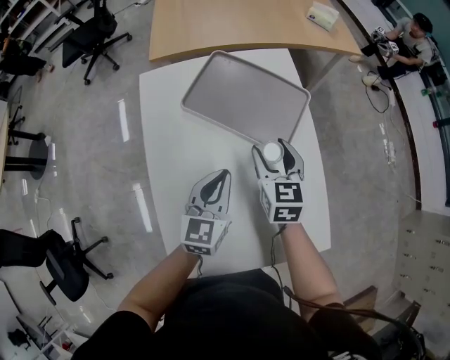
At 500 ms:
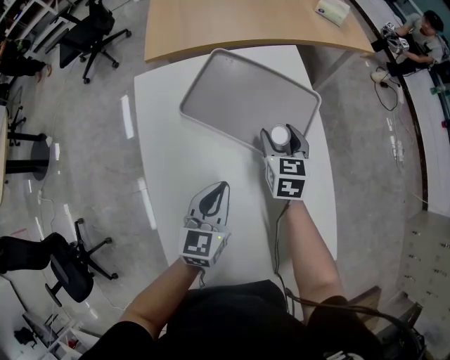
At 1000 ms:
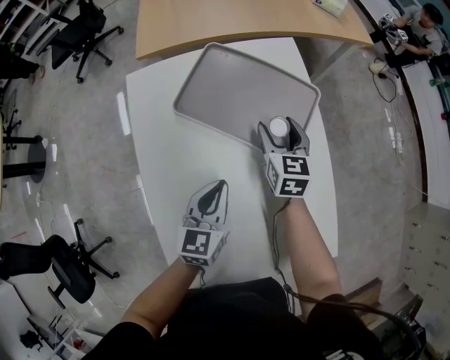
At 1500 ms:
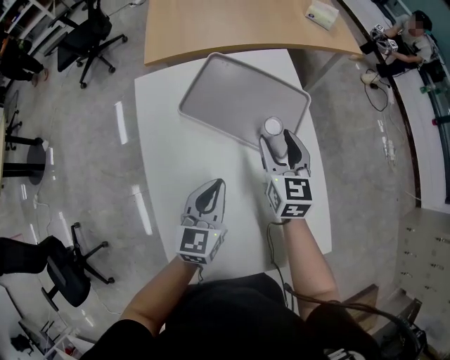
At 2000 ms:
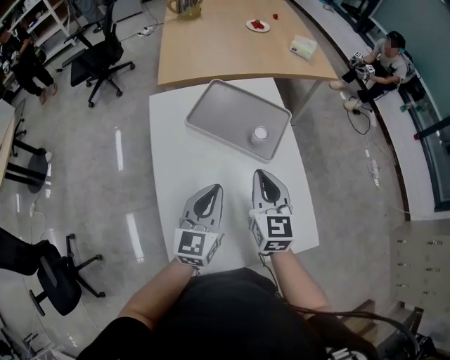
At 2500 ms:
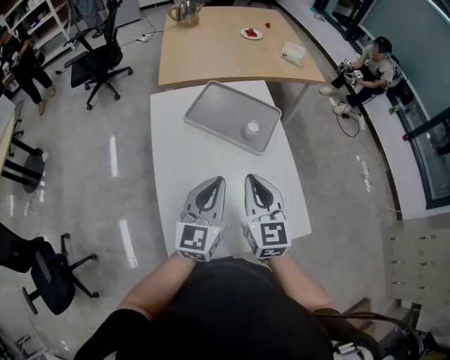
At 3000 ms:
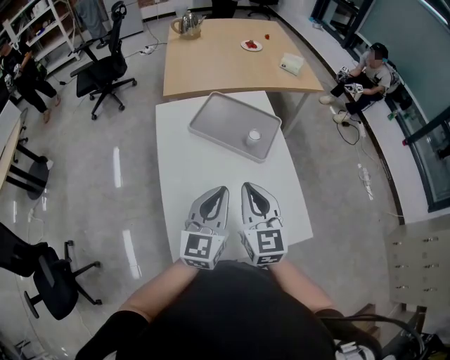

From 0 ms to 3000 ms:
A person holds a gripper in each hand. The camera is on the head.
From 1500 ms to 3000 ms: The left gripper shifts roughly 25 cm upward and backward. The right gripper shifts about 30 cm backward and upward, and closes its fingers.

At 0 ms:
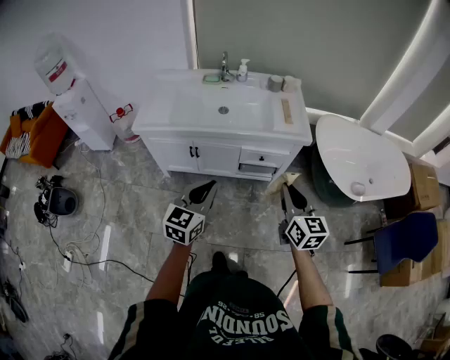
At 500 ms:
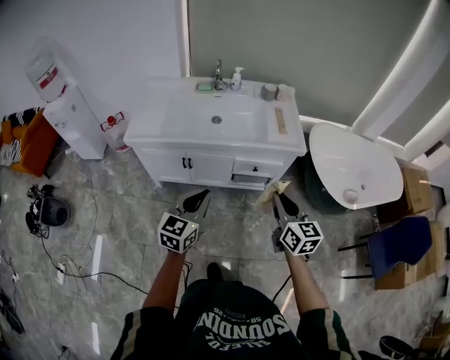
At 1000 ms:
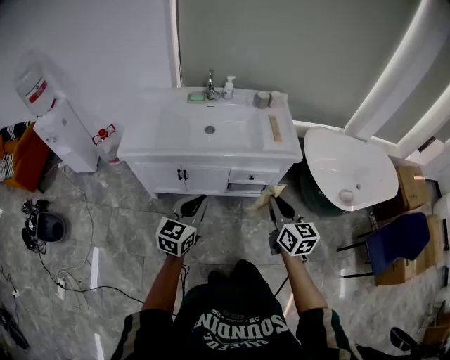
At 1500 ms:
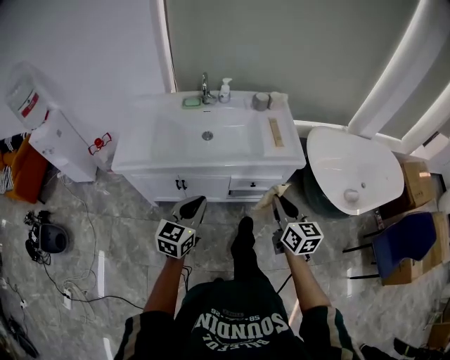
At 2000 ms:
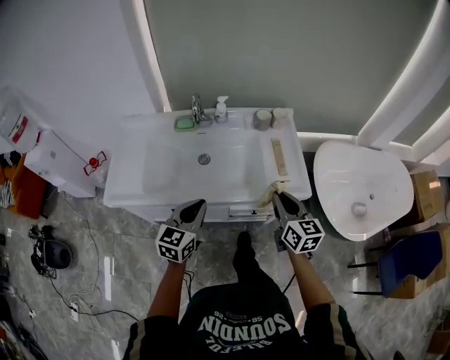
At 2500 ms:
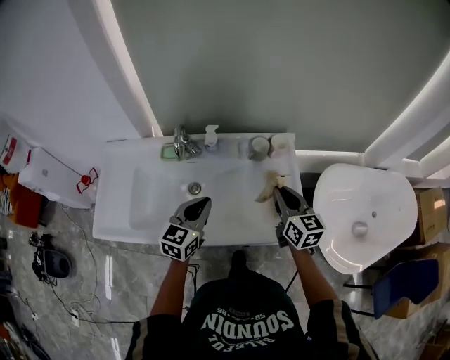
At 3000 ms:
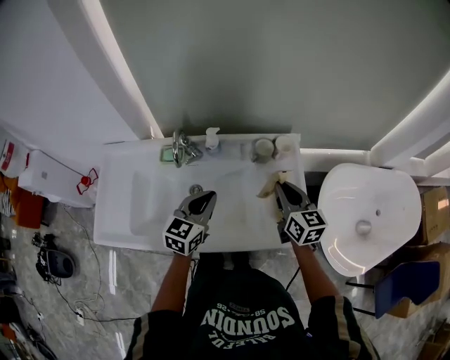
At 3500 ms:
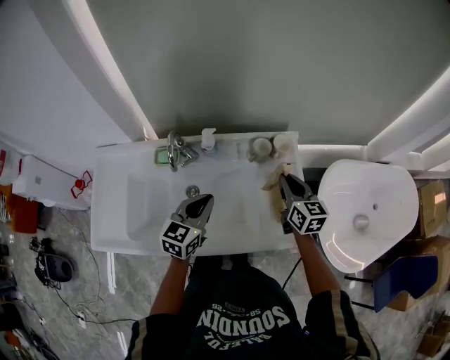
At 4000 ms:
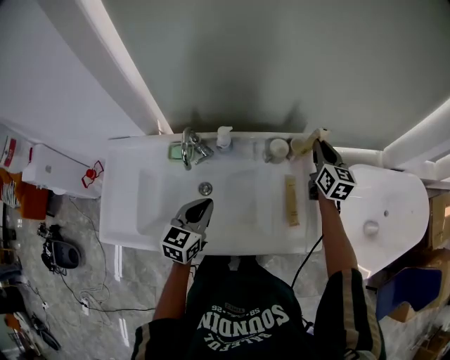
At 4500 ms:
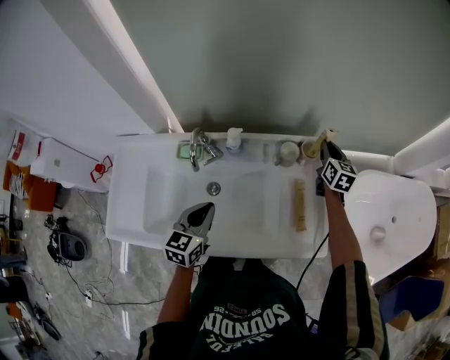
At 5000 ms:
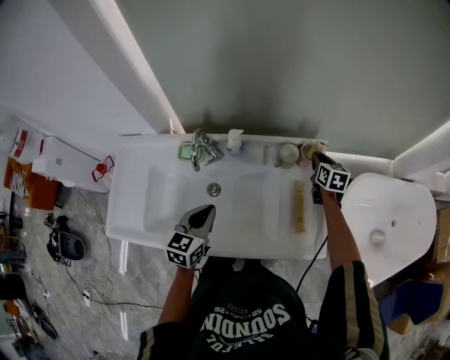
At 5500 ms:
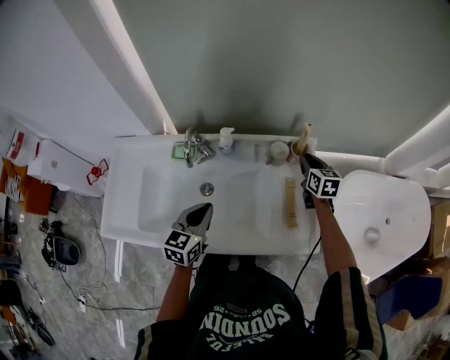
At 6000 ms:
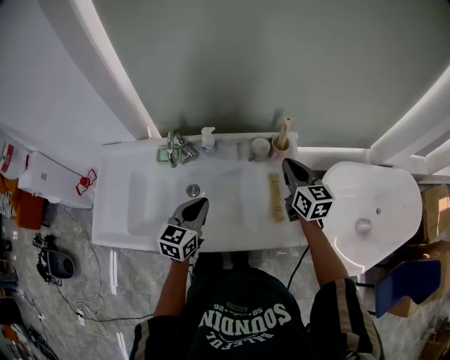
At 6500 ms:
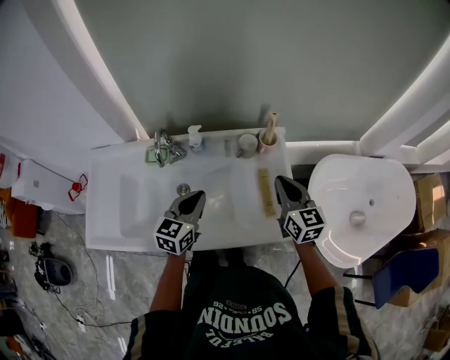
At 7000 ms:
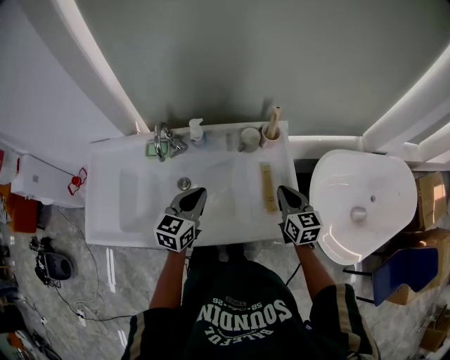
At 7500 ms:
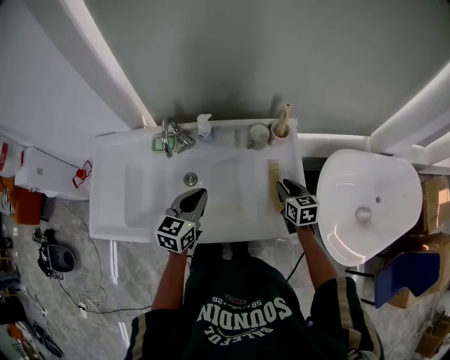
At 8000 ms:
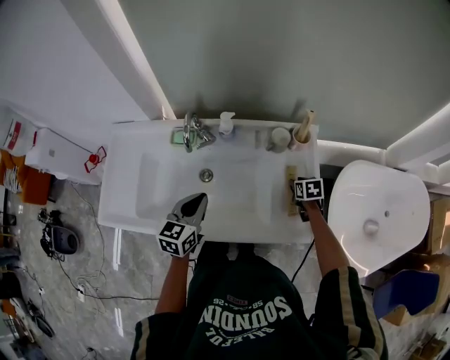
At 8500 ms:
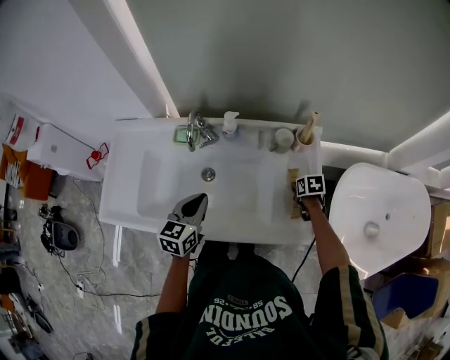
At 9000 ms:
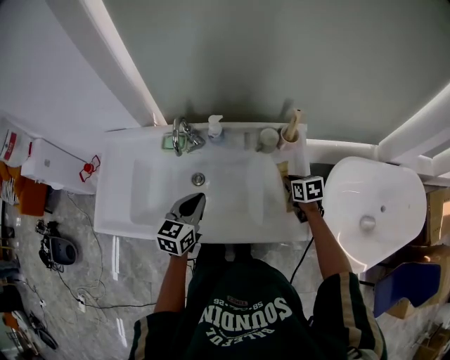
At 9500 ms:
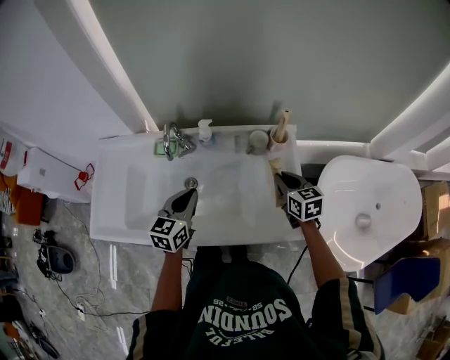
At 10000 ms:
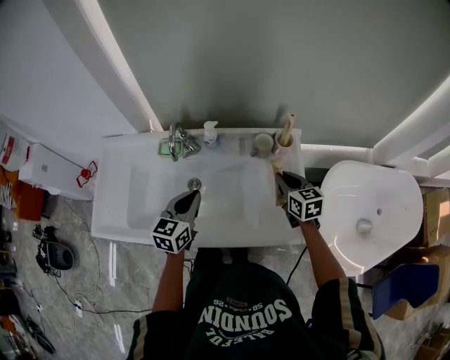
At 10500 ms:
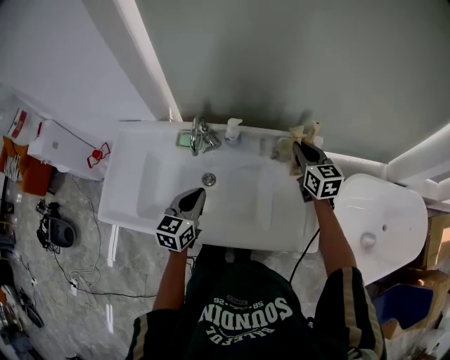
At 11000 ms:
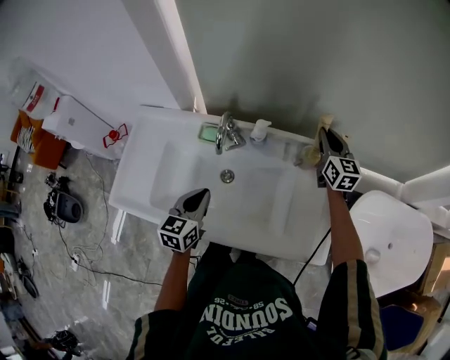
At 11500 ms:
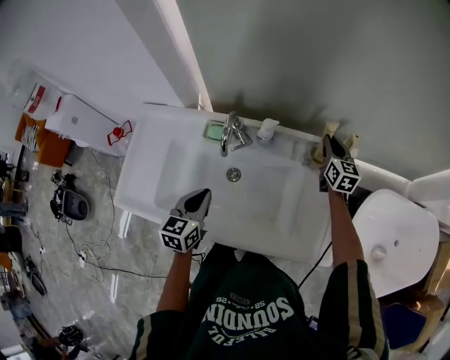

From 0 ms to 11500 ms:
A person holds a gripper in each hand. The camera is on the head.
From 0 ms to 2000 ms: The two grippers go roughly 30 cm forward.
From 2000 ms to 4000 ms: The left gripper is displaced forward by approximately 25 cm. Meanwhile the right gripper shifts about 40 cm forward.
From 4000 ms to 6000 ms: The right gripper goes some 10 cm backward.
From 6000 ms to 7500 ms: The right gripper travels downward by some 15 cm, and turns by about 20 degrees.
From 7500 ms to 9500 ms: The right gripper moves upward, roughly 5 cm.
From 9500 ms to 11500 ms: The left gripper is displaced to the left by about 10 cm. Meanwhile the right gripper travels forward by about 20 cm.

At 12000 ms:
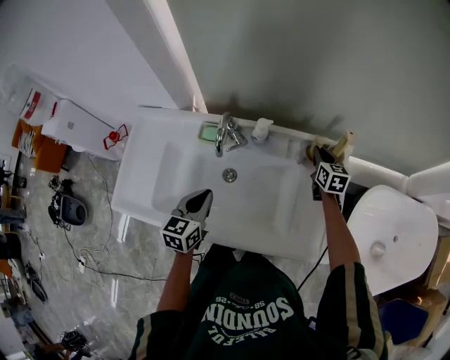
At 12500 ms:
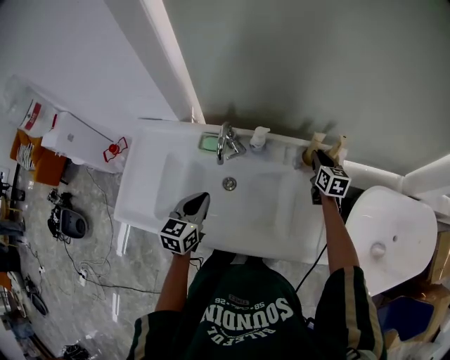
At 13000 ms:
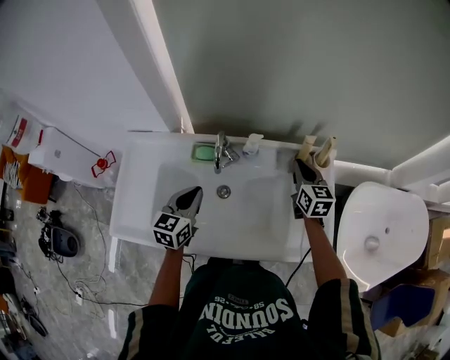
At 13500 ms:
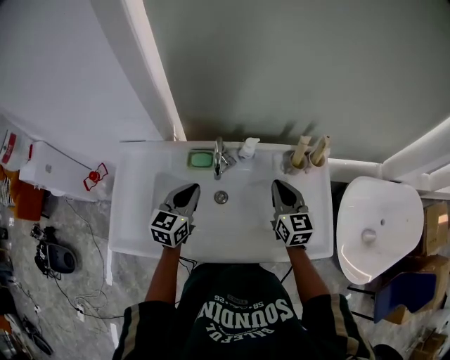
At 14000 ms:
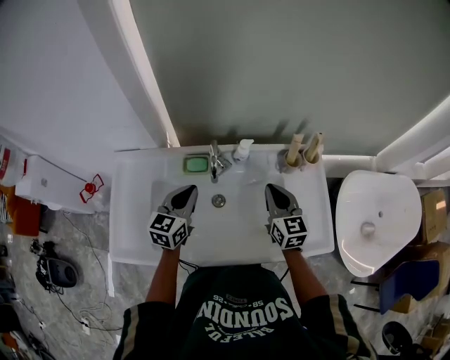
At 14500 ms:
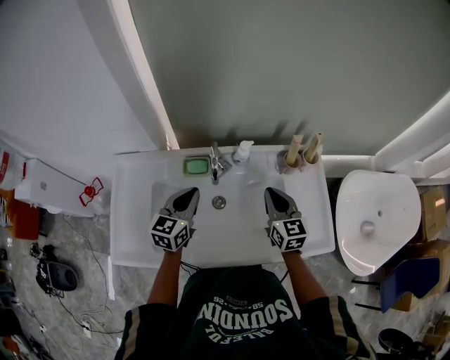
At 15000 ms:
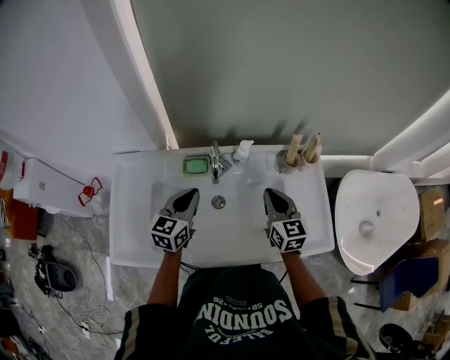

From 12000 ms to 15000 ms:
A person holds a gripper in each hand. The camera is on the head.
From 12000 ms to 13500 ms: The right gripper goes roughly 25 cm backward, to the left and upward, while the left gripper goes roughly 10 cm forward and to the left.
From 13500 ms to 15000 ms: The grippers move only a little.

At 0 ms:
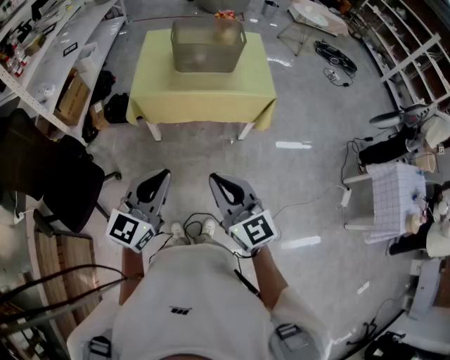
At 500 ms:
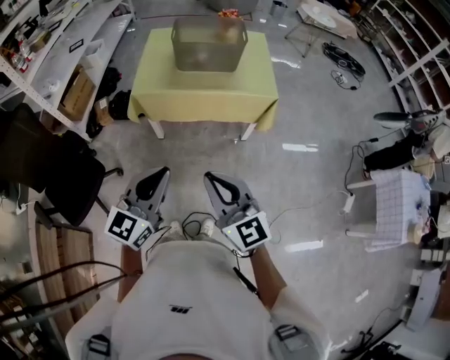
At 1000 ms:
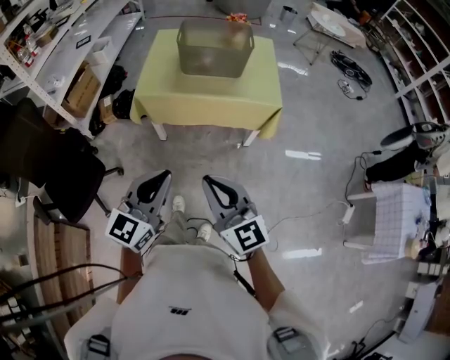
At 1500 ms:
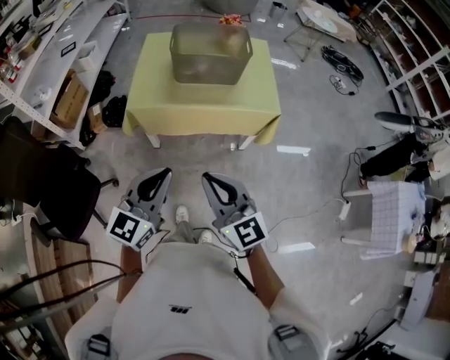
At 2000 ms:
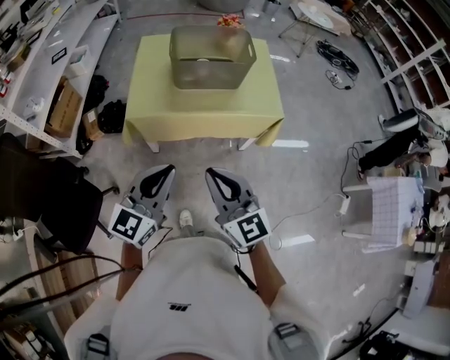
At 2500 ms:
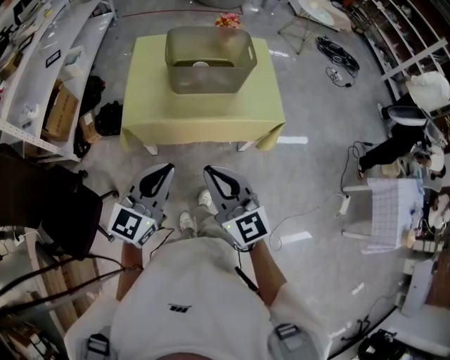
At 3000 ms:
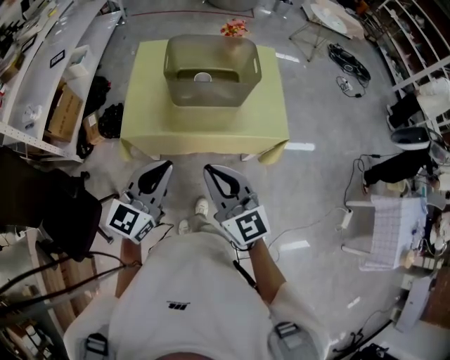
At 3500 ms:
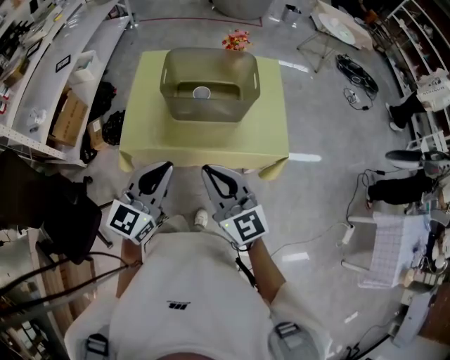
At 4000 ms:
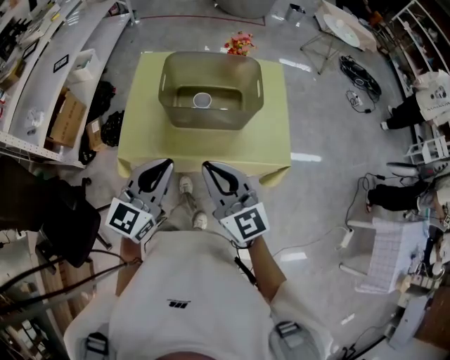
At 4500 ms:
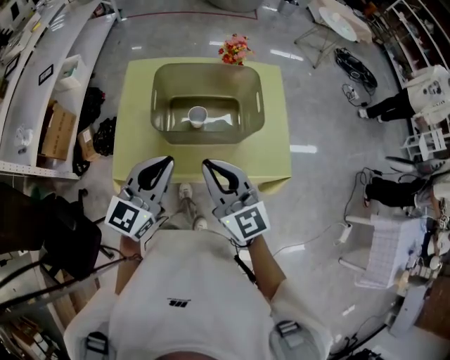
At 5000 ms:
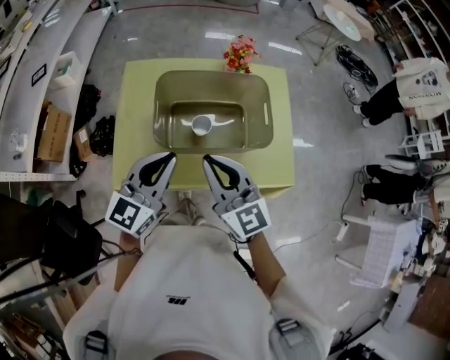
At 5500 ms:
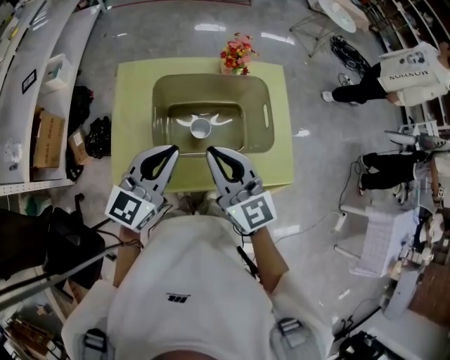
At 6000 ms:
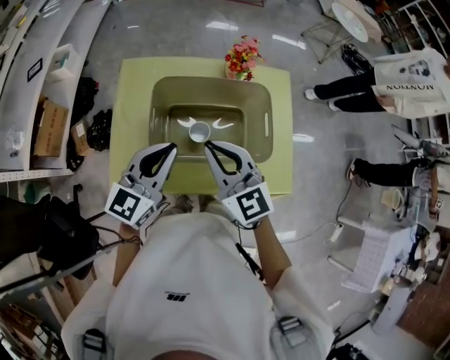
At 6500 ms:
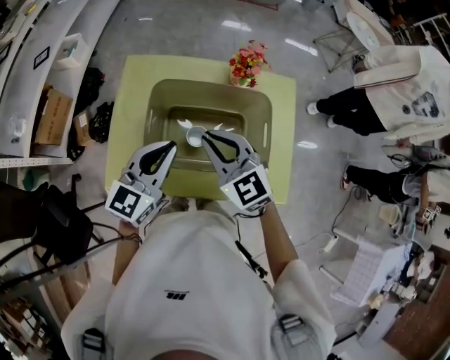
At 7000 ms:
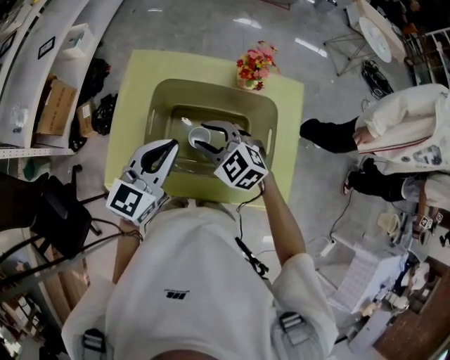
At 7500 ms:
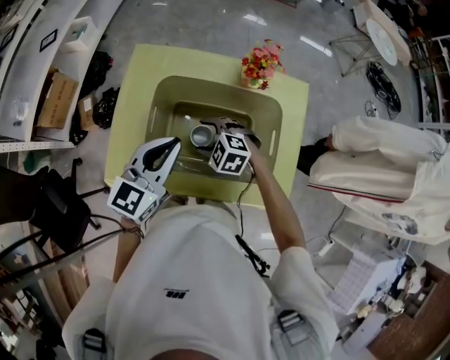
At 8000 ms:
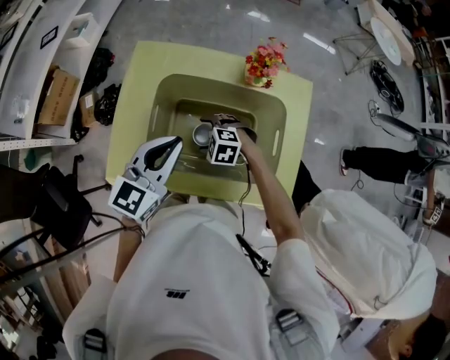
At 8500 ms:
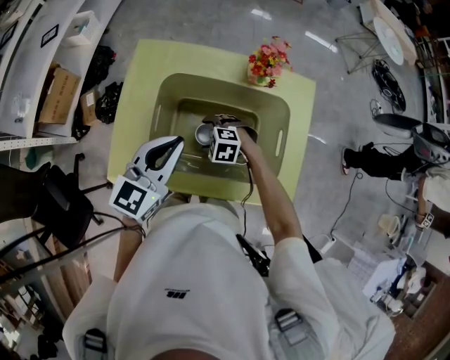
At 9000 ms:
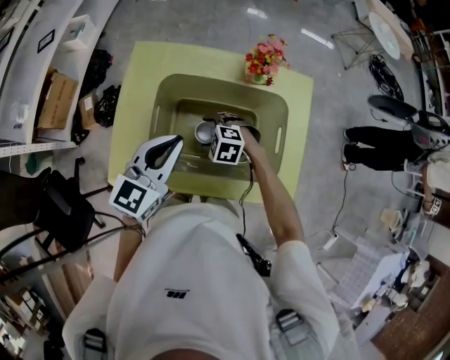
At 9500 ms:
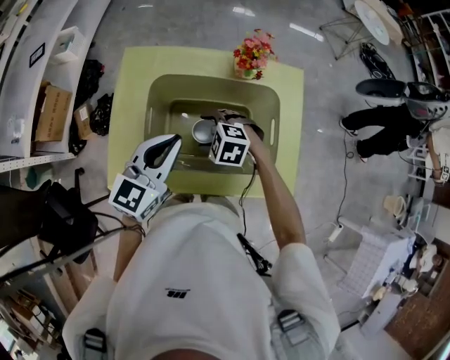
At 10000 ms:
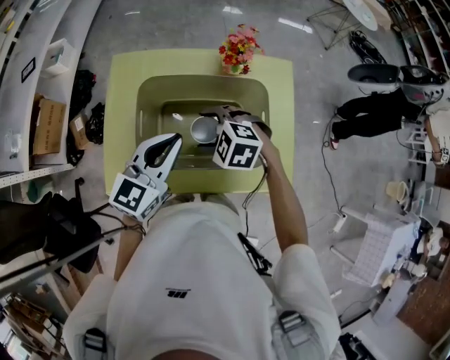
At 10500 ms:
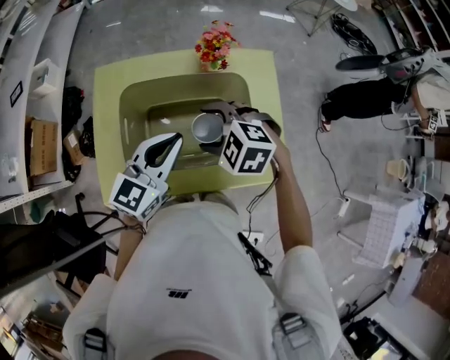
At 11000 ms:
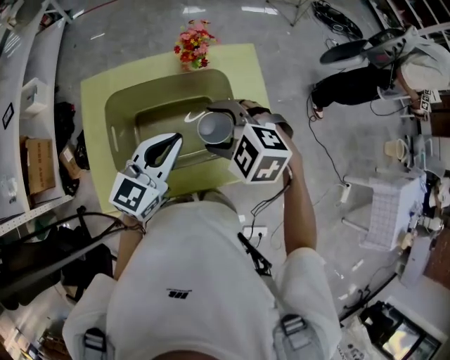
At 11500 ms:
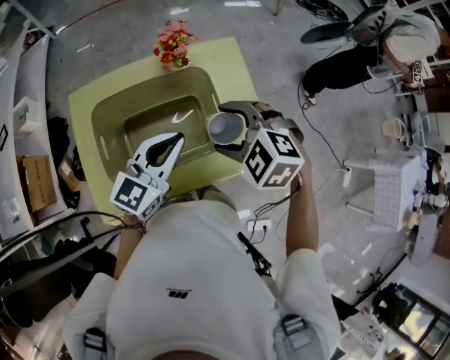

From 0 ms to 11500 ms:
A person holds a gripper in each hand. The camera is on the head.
From 0 ms to 2000 ms: The two grippers go about 20 cm forward.
From 2000 ms to 4000 ms: The two grippers go about 25 cm forward.
From 4000 ms to 6000 ms: Both grippers travel together forward, roughly 25 cm.
From 6000 ms to 7500 ms: The right gripper travels downward by some 20 cm, tips its fingers downward by approximately 40 degrees, and opens its fingers; the left gripper heads forward, covering approximately 5 cm.
From 7500 ms to 9500 ms: The right gripper moves roughly 10 cm downward and comes back.
From 9500 ms to 11500 ms: The left gripper ends up about 15 cm from where it was, and changes its angle by roughly 20 degrees. Meanwhile the right gripper travels upward by roughly 20 cm, and turns by some 30 degrees.
